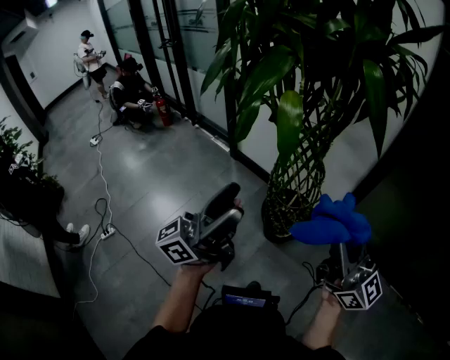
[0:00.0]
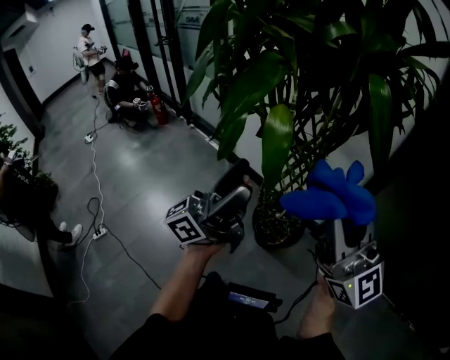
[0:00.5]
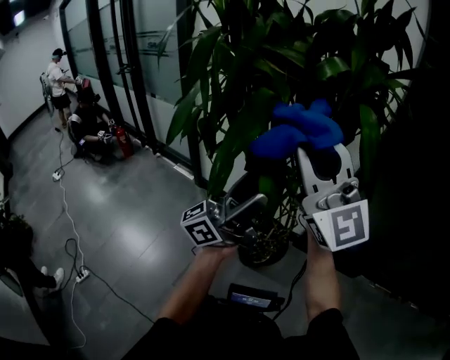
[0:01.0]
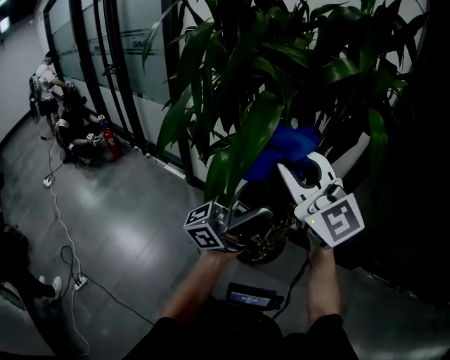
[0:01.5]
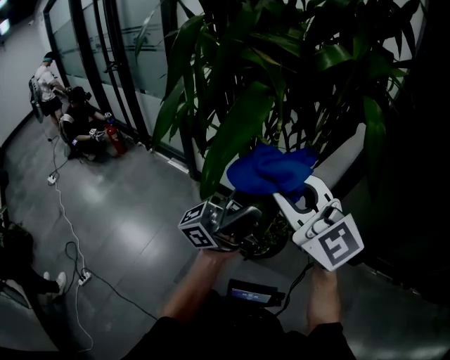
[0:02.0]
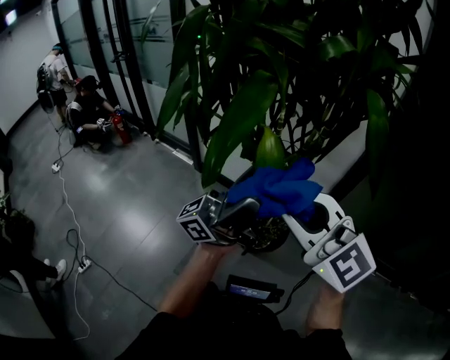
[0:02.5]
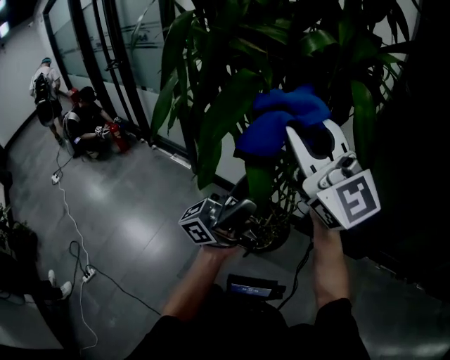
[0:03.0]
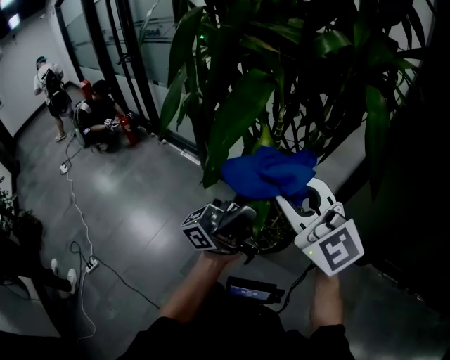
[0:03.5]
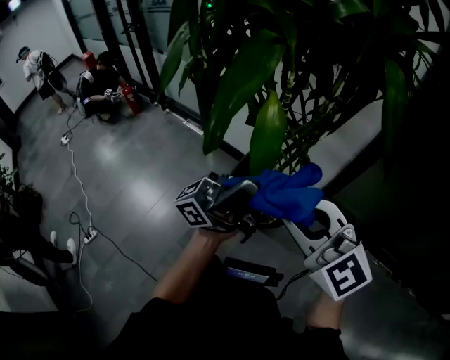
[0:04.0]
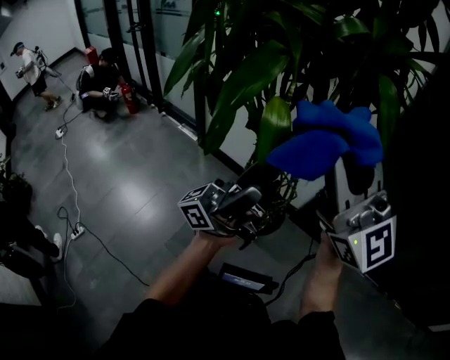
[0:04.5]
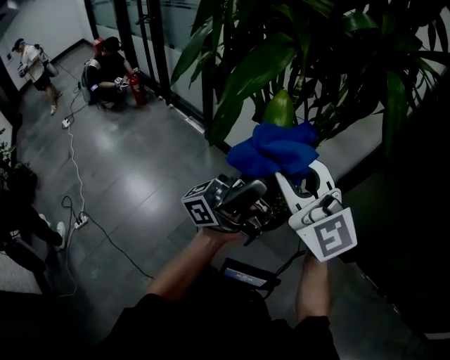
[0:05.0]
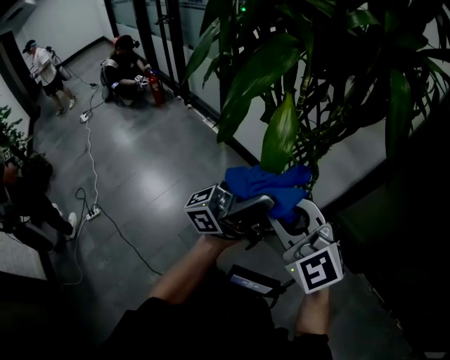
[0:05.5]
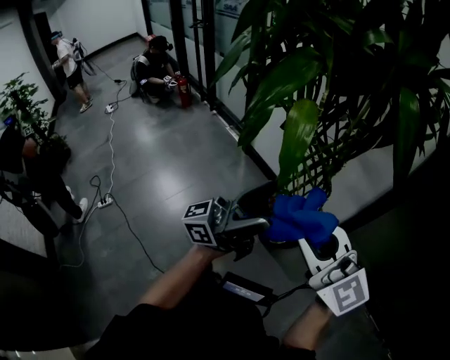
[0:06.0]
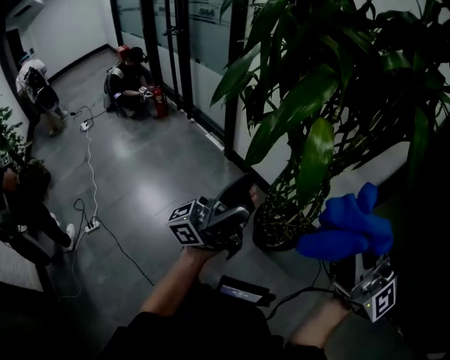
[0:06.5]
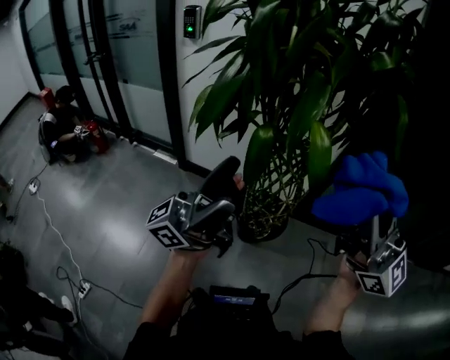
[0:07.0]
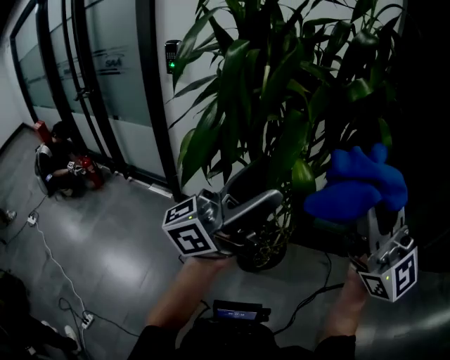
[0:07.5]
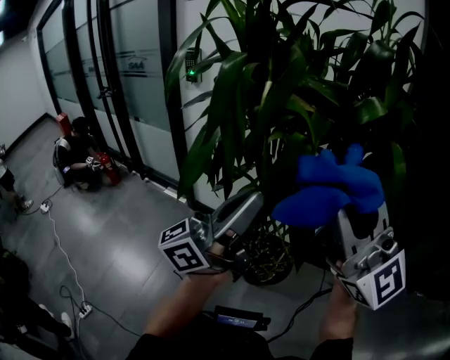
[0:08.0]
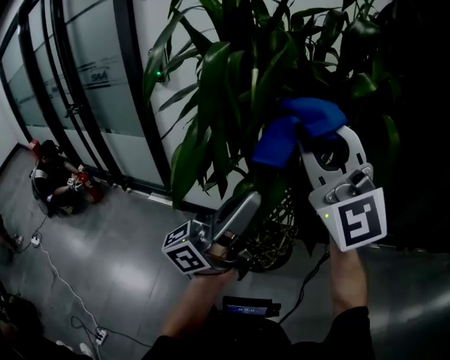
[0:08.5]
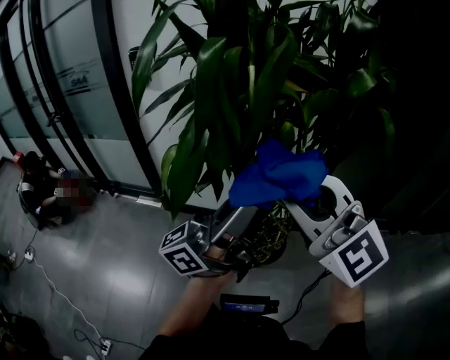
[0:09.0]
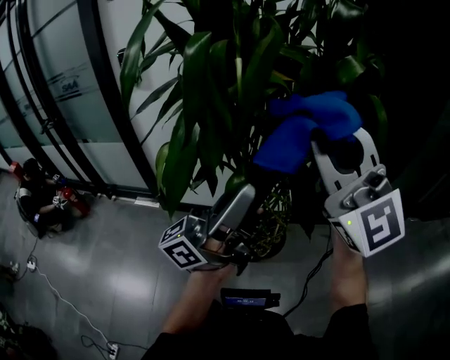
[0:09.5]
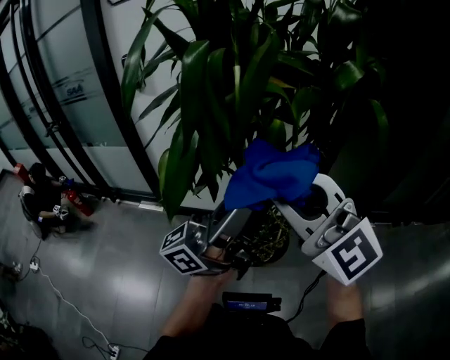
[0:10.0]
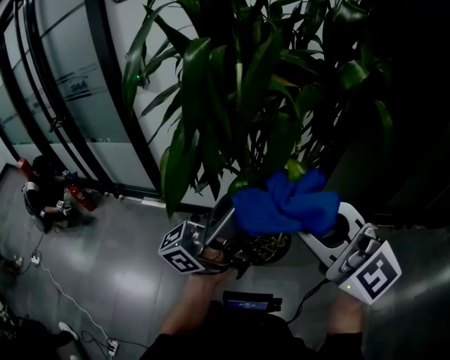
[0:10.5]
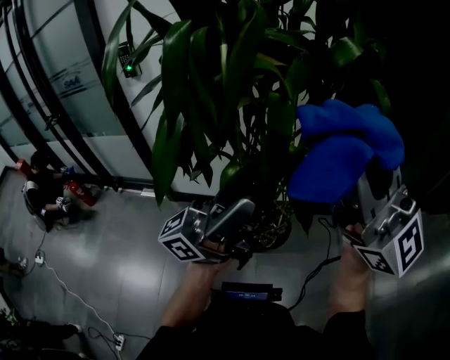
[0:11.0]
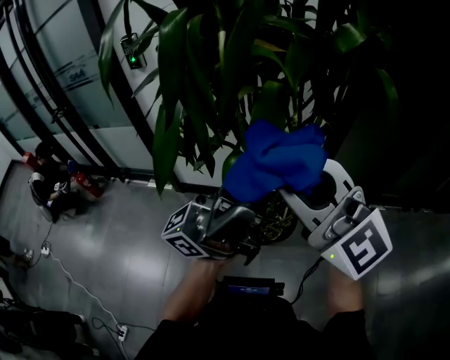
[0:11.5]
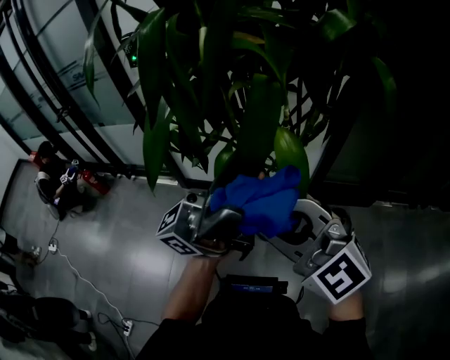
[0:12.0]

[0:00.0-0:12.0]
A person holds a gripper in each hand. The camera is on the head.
0:00.0 to 0:02.0: The right gripper goes roughly 25 cm forward and to the left, and swivels some 40 degrees; the left gripper goes some 20 cm forward, and rotates about 30 degrees.
0:02.0 to 0:04.0: The right gripper goes roughly 10 cm backward and downward.
0:04.0 to 0:06.0: The left gripper heads backward and downward, covering some 10 cm, and rotates roughly 20 degrees. Meanwhile the right gripper reaches roughly 20 cm upward, then returns.
0:06.0 to 0:08.0: The left gripper changes place by roughly 20 cm, and closes up. Meanwhile the right gripper is displaced upward by roughly 20 cm, and rotates approximately 40 degrees.
0:08.0 to 0:10.0: The right gripper goes up and down, roughly 10 cm each way, reversing 2 times, and turns by approximately 20 degrees; the left gripper swivels approximately 20 degrees.
0:10.0 to 0:12.0: The right gripper heads downward, covering approximately 10 cm. The left gripper opens.

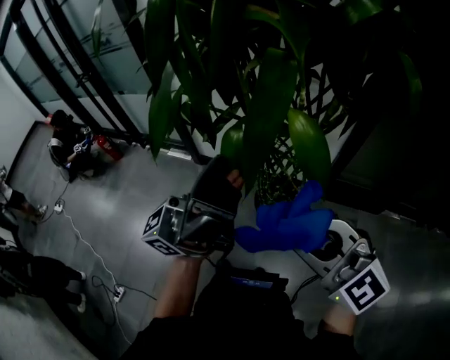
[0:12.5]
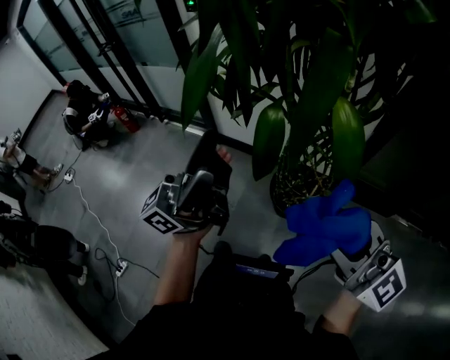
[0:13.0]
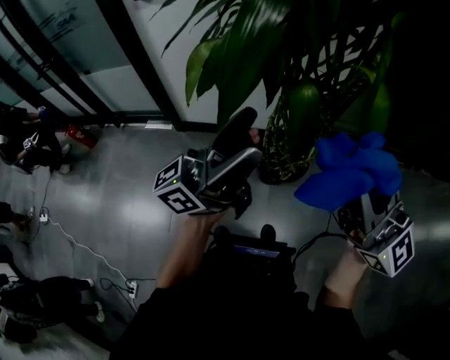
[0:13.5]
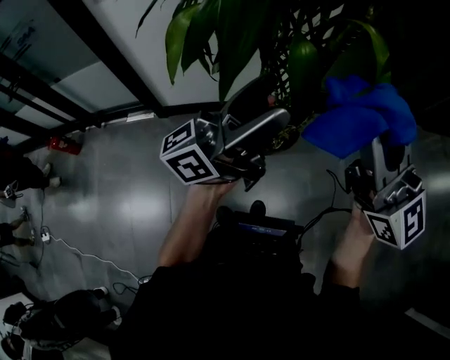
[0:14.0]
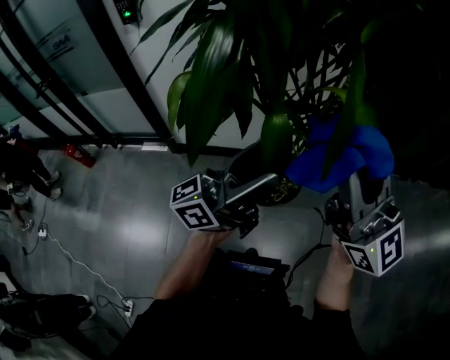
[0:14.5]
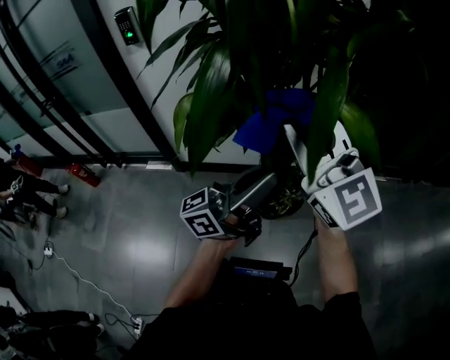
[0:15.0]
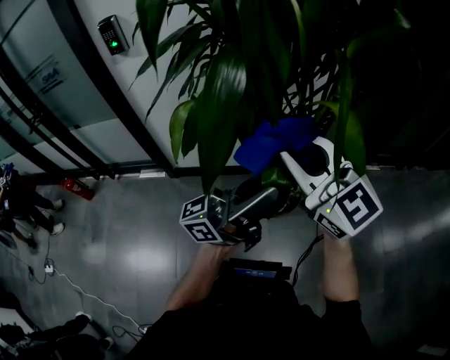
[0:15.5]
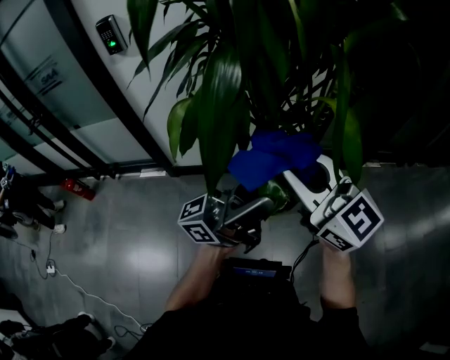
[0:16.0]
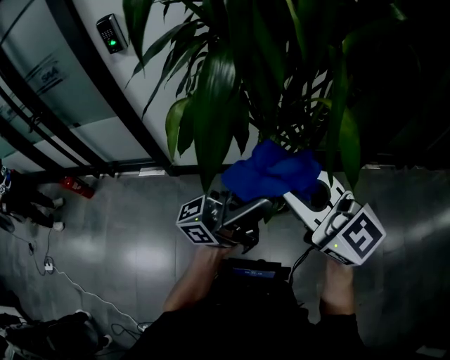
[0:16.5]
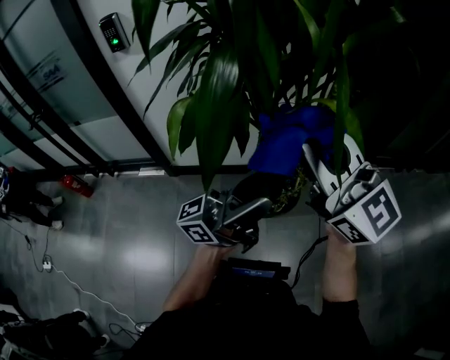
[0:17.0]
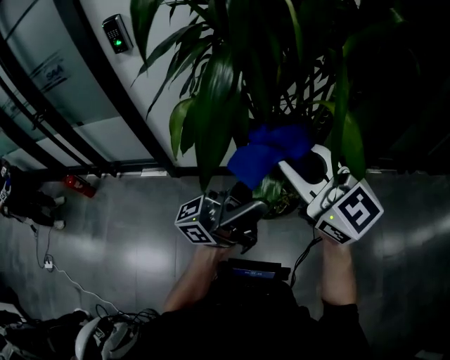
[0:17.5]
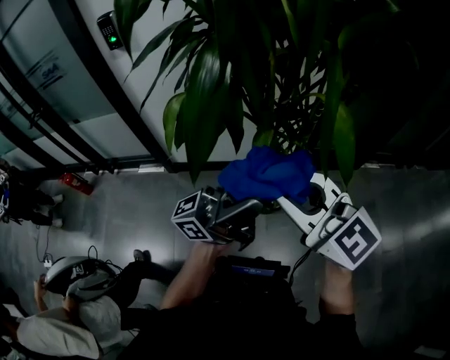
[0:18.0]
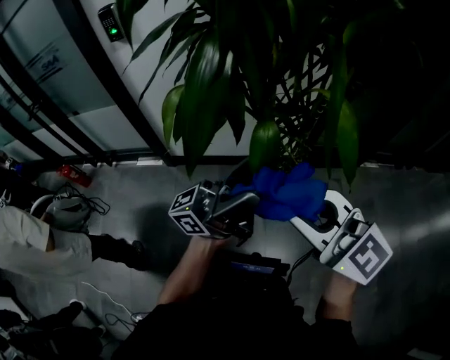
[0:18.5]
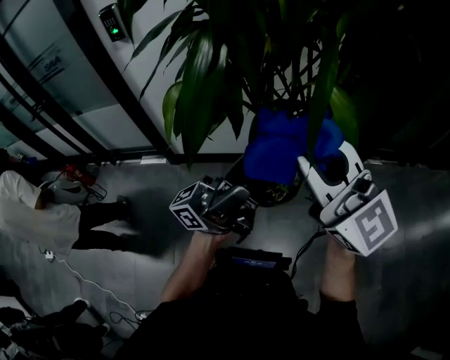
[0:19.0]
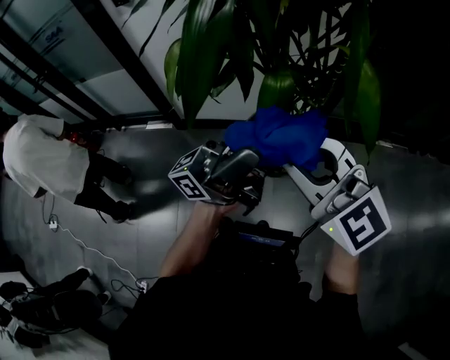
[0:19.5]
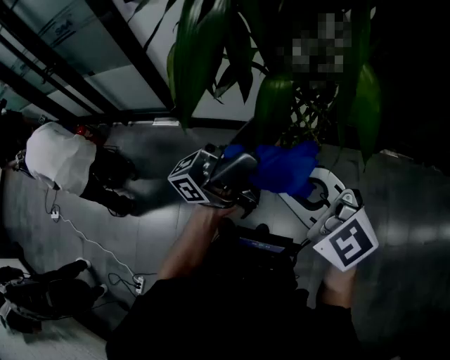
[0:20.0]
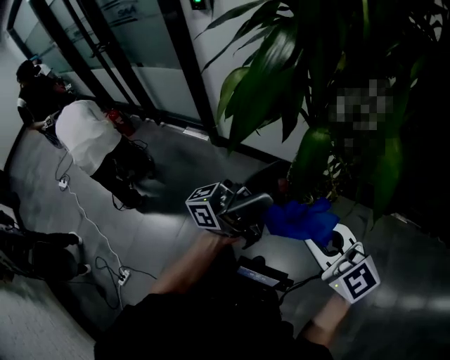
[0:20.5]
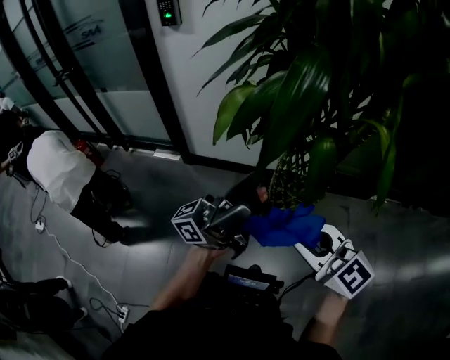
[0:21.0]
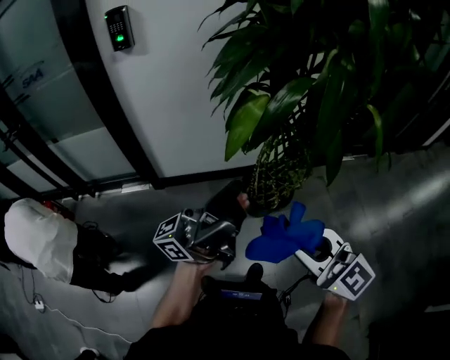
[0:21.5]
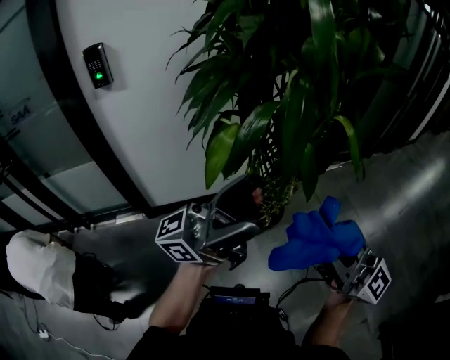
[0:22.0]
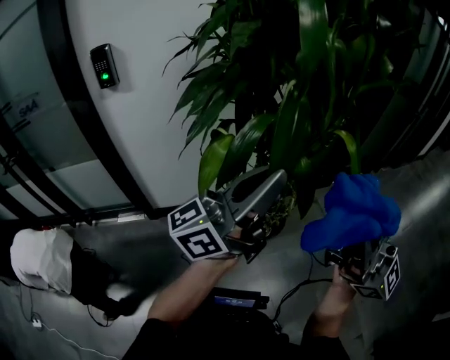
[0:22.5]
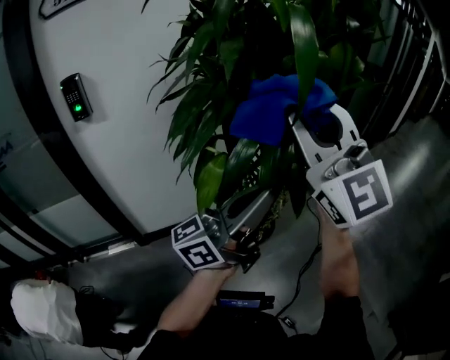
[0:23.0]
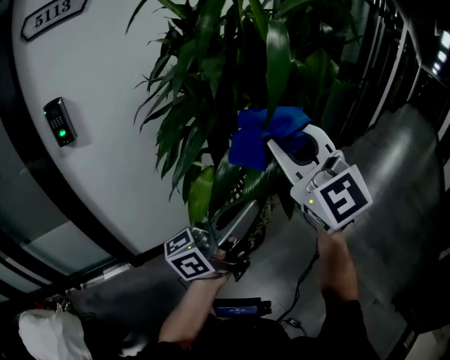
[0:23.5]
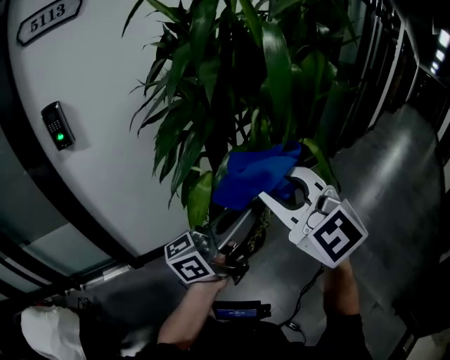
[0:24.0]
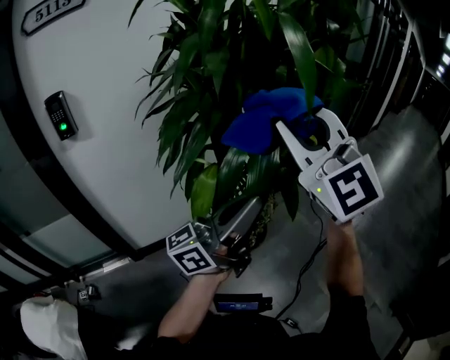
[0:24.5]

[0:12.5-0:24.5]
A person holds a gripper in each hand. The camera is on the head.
0:12.5 to 0:14.5: The right gripper heads upward, covering some 10 cm, and points its fingers approximately 30 degrees further upward; the left gripper goes some 10 cm downward, and turns by roughly 20 degrees.
0:14.5 to 0:16.5: The left gripper closes, then opens again. Meanwhile the right gripper is displaced to the left and downward by roughly 10 cm, and rotates approximately 30 degrees.
0:16.5 to 0:18.5: The right gripper moves roughly 10 cm upward and comes back.
0:18.5 to 0:20.5: The right gripper travels downward by some 10 cm.
0:20.5 to 0:22.5: The left gripper moves upward, roughly 15 cm, and closes up; the right gripper is displaced upward by roughly 25 cm, and angles its fingers upward, by approximately 50 degrees.
0:22.5 to 0:24.5: The right gripper moves to the left and forward, some 20 cm, and rotates some 60 degrees.

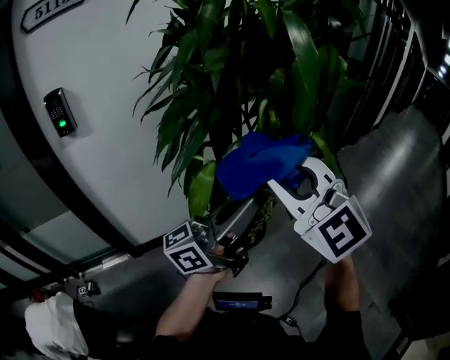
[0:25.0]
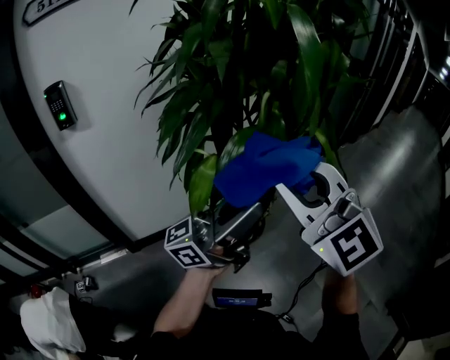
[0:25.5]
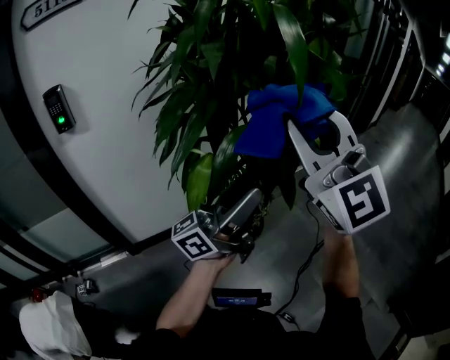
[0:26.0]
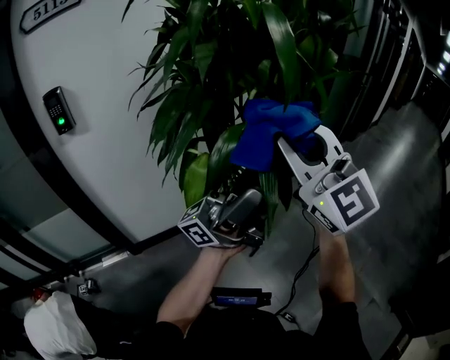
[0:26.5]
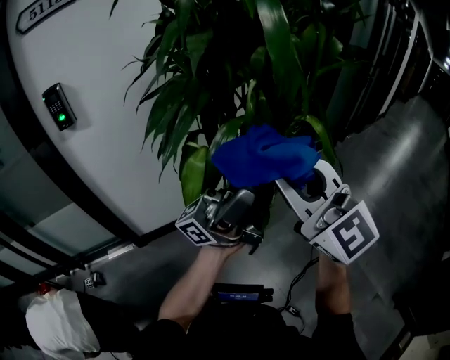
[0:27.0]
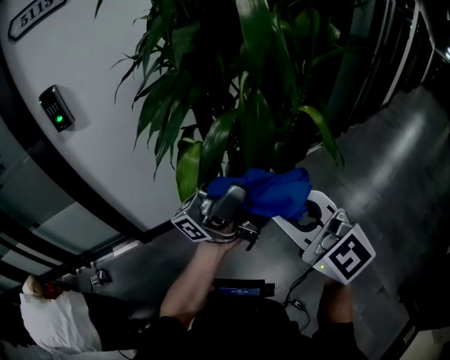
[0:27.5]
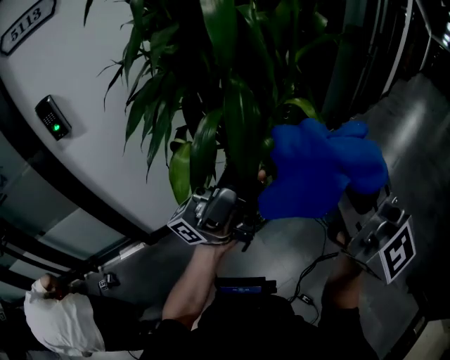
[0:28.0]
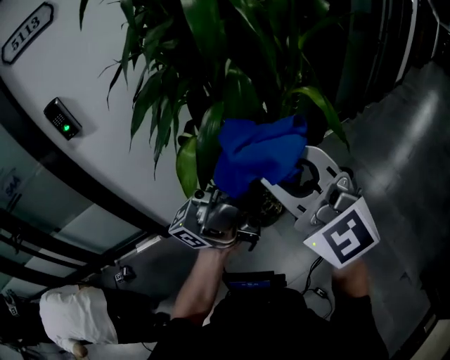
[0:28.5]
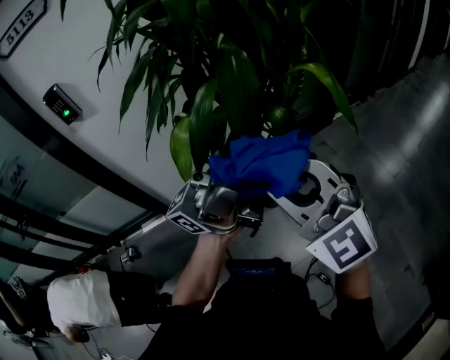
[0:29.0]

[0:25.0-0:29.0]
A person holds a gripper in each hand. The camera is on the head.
0:25.0 to 0:27.0: The right gripper reaches approximately 10 cm upward, then returns, and swivels approximately 20 degrees. The left gripper turns by roughly 30 degrees, and opens its fingers.
0:27.0 to 0:29.0: The right gripper moves up and down over approximately 15 cm, changing direction 2 times.
